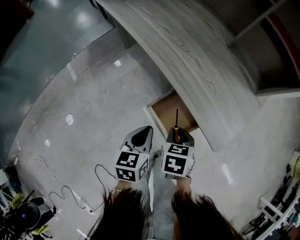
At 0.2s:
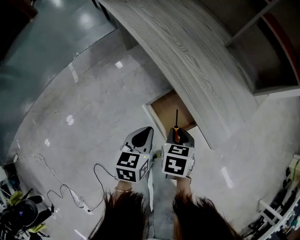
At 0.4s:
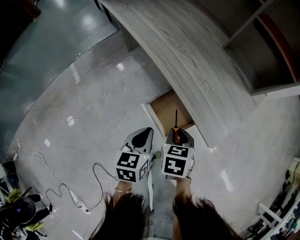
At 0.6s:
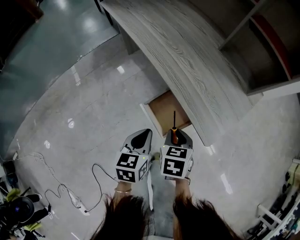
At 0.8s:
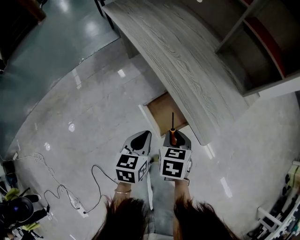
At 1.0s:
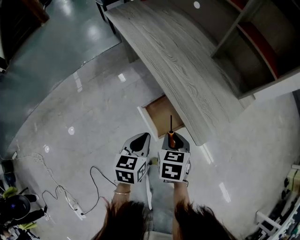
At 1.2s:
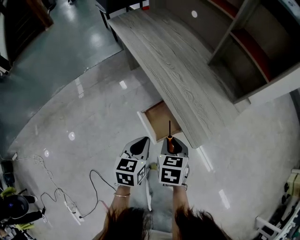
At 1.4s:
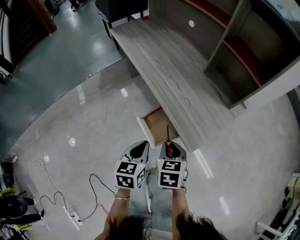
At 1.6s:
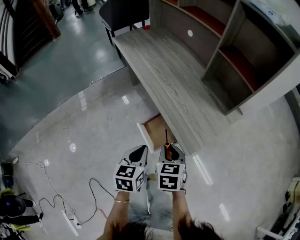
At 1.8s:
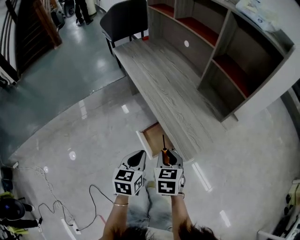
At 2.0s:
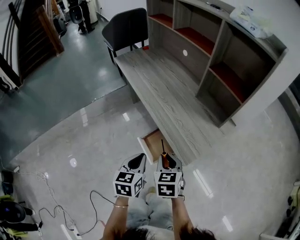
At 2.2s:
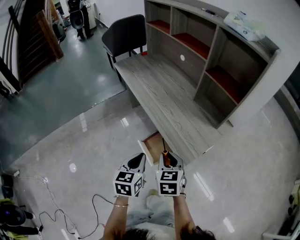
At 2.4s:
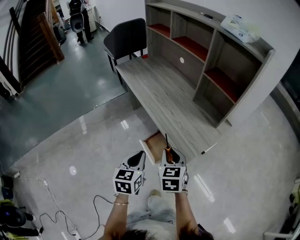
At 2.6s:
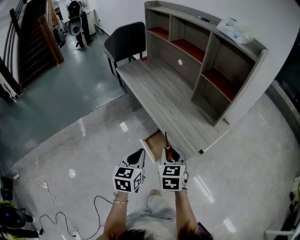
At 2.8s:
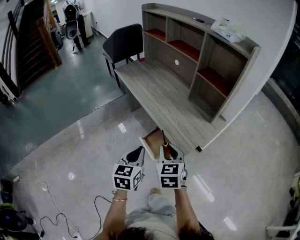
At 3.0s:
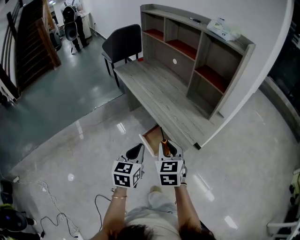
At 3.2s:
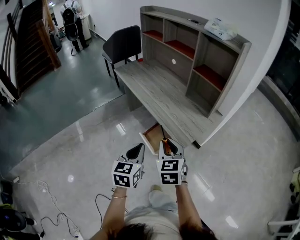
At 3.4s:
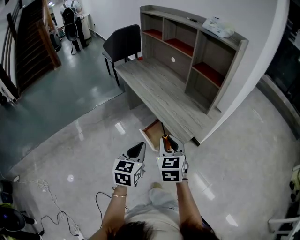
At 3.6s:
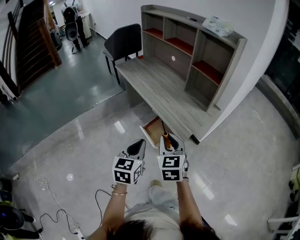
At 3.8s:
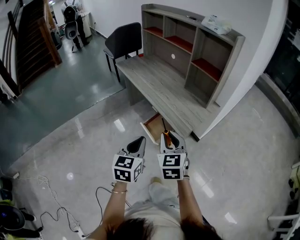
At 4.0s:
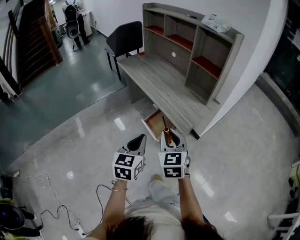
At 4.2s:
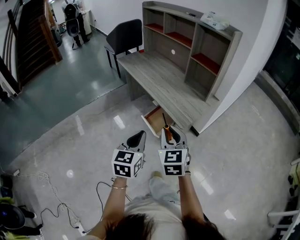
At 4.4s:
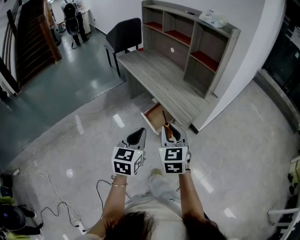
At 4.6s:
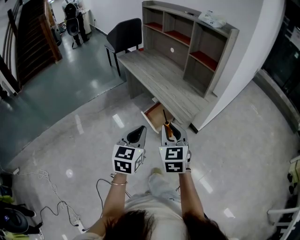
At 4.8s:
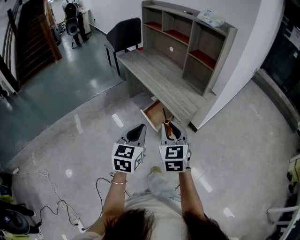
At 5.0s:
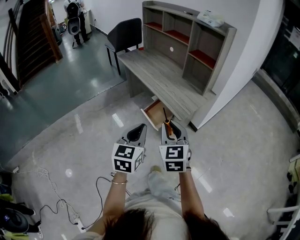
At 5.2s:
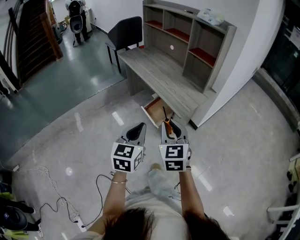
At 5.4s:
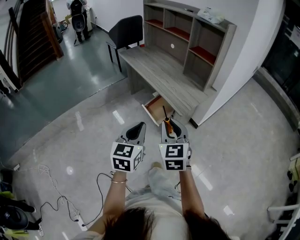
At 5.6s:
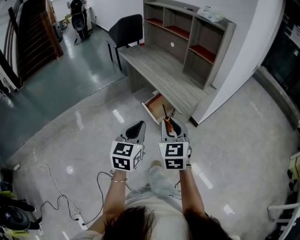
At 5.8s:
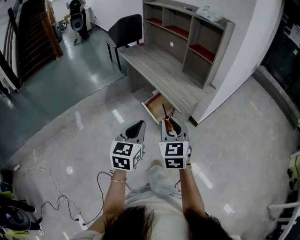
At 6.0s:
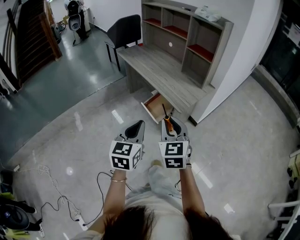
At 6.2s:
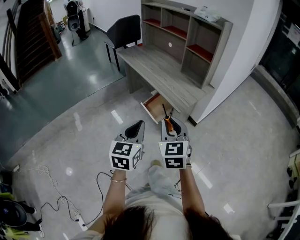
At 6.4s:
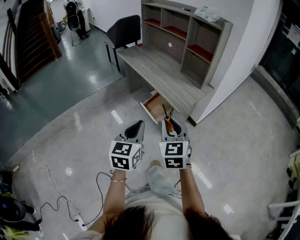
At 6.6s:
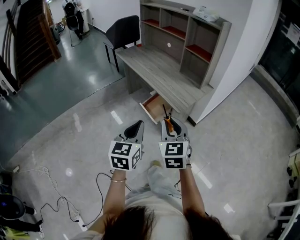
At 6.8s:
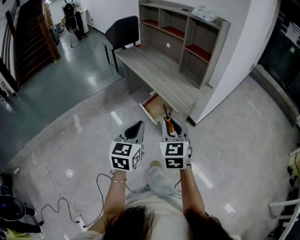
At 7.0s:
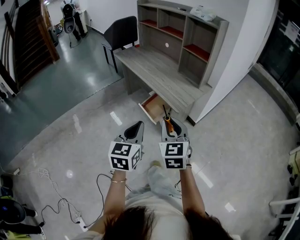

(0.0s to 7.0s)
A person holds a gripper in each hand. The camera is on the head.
0.0s - 1.4s: The left gripper travels upward, to the right and backward by roughly 10 cm, while the right gripper heads upward, covering about 10 cm.
1.4s - 2.8s: The grippers both shift upward by roughly 15 cm. The right gripper changes its angle by roughly 20 degrees.
2.8s - 4.2s: Both grippers travel together backward and upward, some 15 cm.
4.2s - 5.6s: The two grippers go roughly 10 cm backward.
5.6s - 7.0s: There are only small adjustments of the grippers.

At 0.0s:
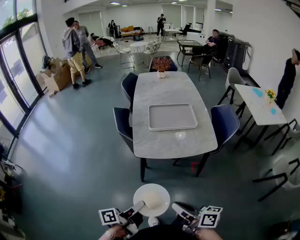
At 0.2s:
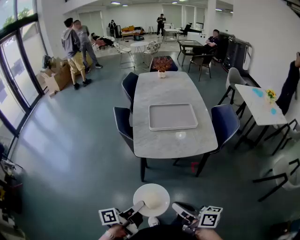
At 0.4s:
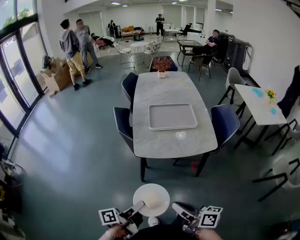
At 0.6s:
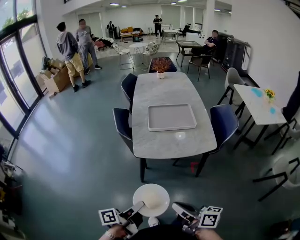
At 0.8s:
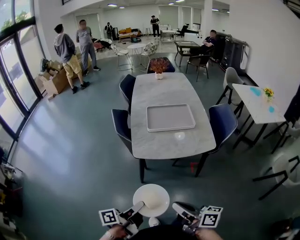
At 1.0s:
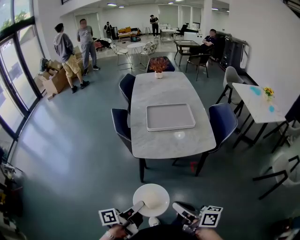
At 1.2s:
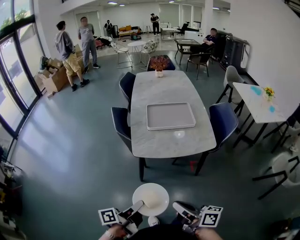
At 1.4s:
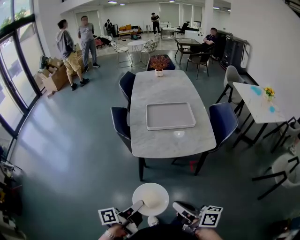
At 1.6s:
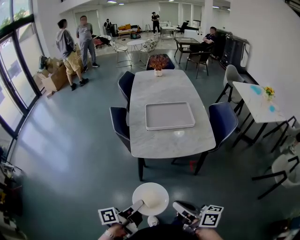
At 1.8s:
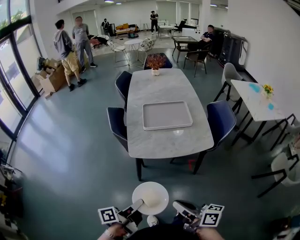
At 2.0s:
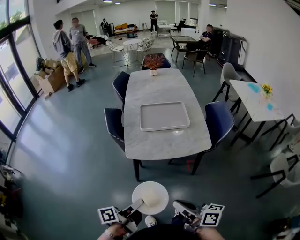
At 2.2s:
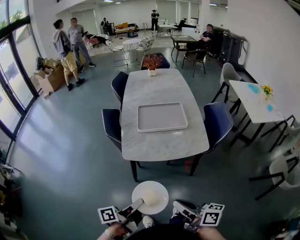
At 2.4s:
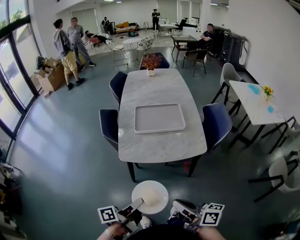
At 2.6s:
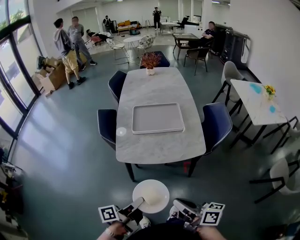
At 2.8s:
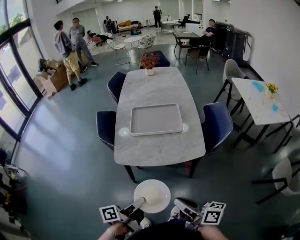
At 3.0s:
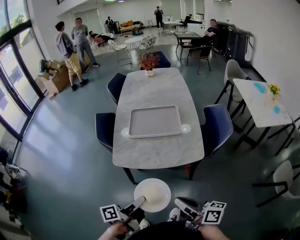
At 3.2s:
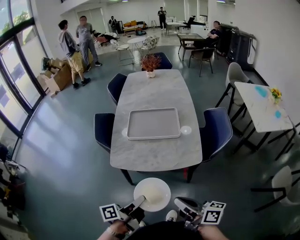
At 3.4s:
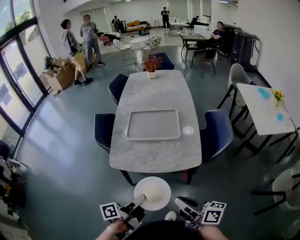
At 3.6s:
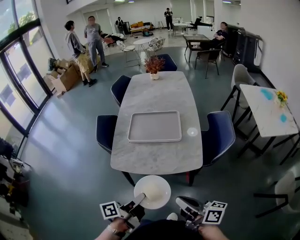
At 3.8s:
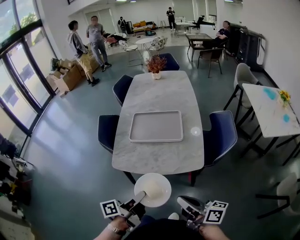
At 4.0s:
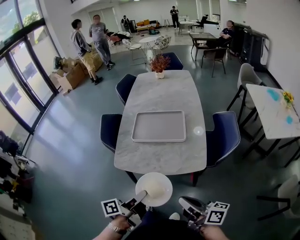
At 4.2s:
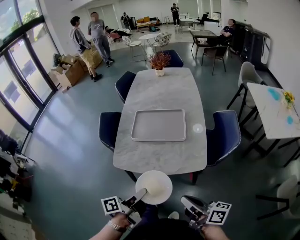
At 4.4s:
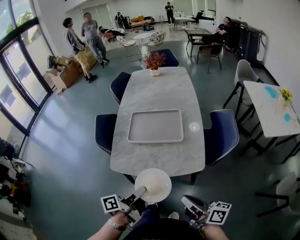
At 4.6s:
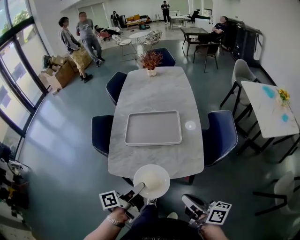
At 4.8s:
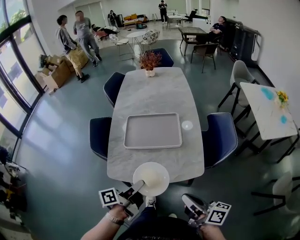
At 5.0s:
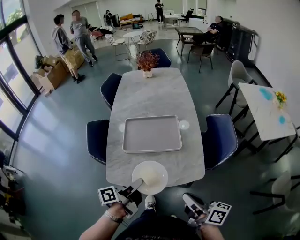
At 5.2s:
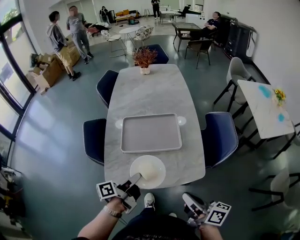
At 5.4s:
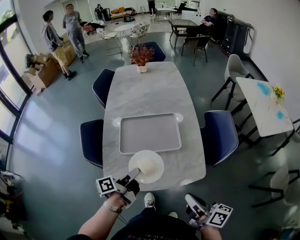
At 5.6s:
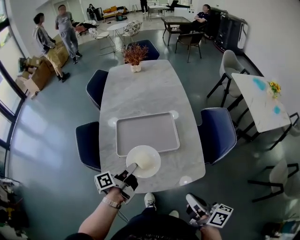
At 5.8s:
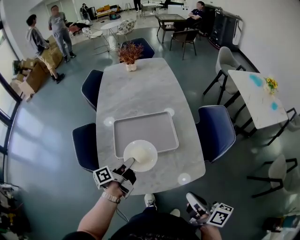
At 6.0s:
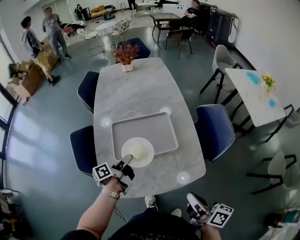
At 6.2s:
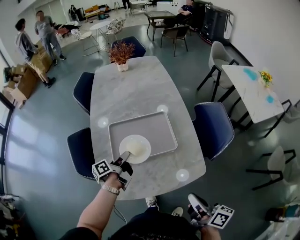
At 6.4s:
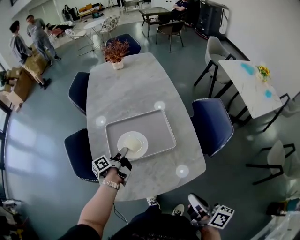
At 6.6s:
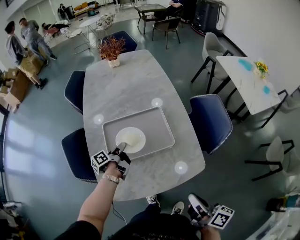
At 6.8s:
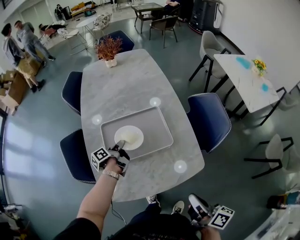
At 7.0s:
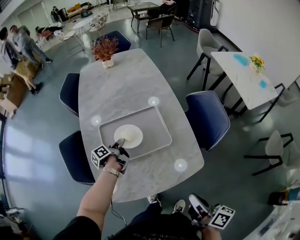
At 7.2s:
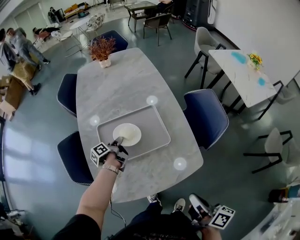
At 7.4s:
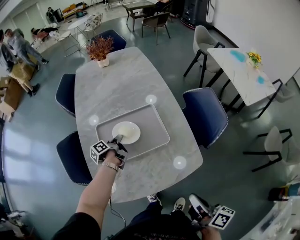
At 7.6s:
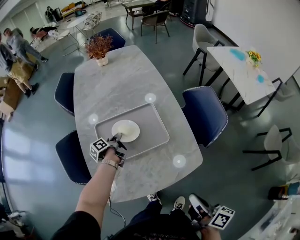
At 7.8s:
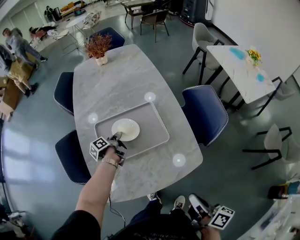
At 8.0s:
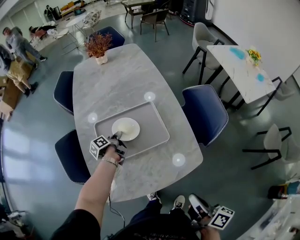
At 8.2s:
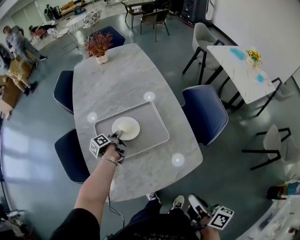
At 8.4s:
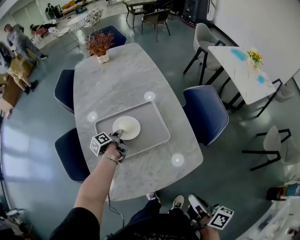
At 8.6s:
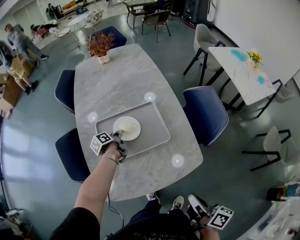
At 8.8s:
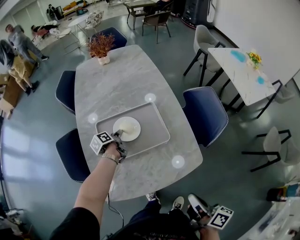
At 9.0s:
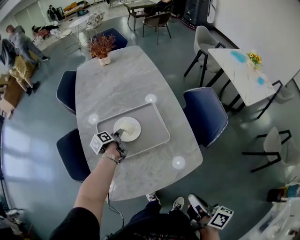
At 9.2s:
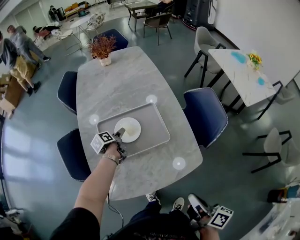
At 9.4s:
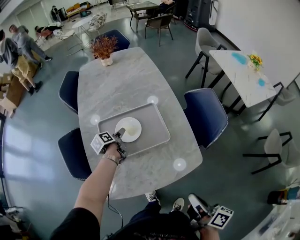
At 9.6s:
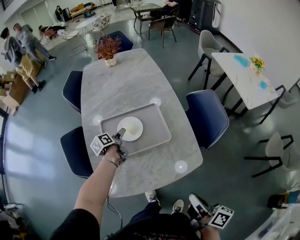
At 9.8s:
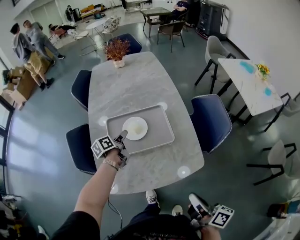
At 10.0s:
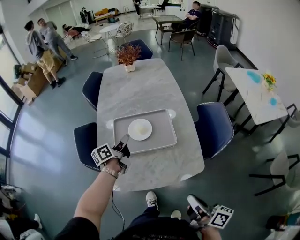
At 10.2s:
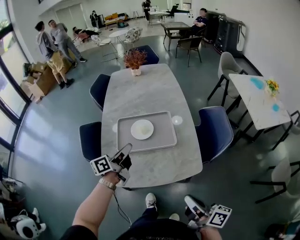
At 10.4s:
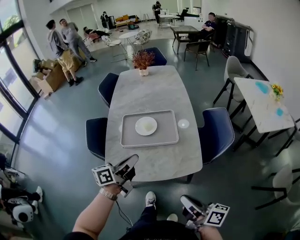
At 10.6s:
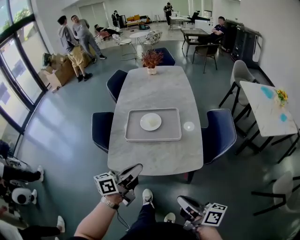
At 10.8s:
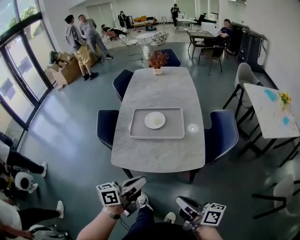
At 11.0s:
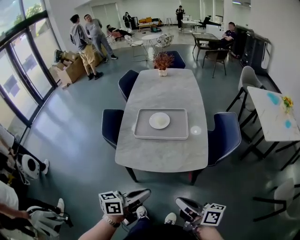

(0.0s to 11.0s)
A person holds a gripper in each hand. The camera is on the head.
1.6s - 3.2s: The right gripper changes place by roughly 20 cm.
3.2s - 4.8s: The right gripper moves about 10 cm.
4.8s - 6.2s: The right gripper ends up about 10 cm from where it was, and rotates roughly 20 degrees.
9.4s - 11.0s: The right gripper changes place by about 15 cm, and swivels roughly 40 degrees.

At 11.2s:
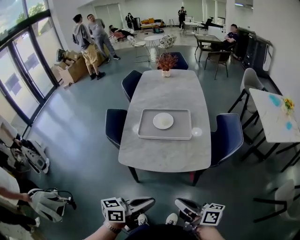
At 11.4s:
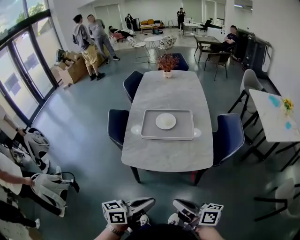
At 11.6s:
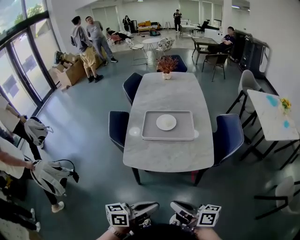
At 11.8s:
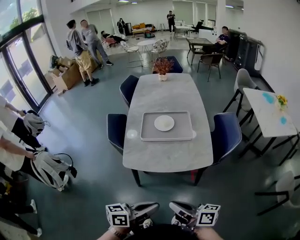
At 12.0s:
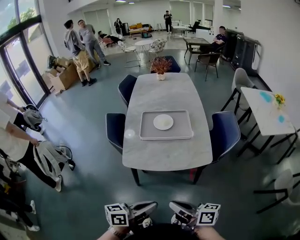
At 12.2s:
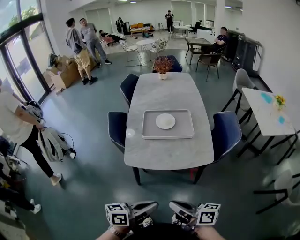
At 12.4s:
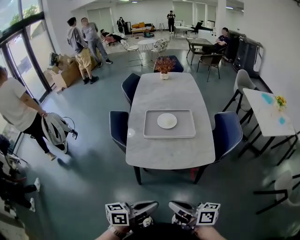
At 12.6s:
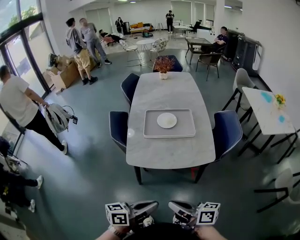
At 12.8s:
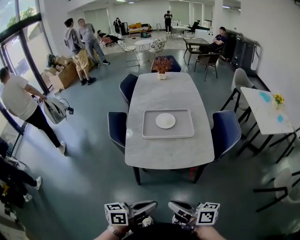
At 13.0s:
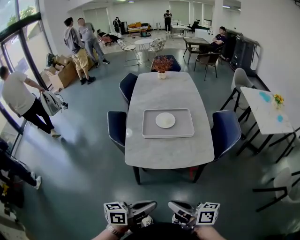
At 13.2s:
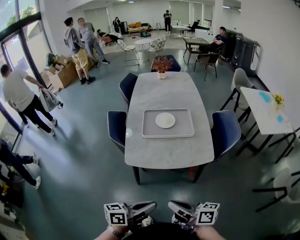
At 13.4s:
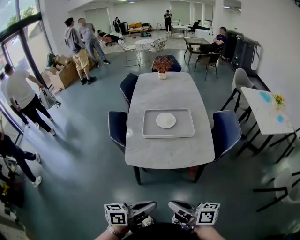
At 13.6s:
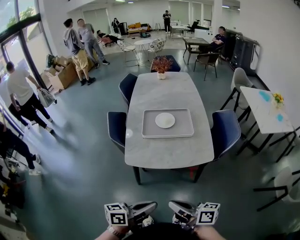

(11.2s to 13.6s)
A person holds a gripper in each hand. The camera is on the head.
11.2s - 12.4s: The right gripper shifts by some 10 cm.

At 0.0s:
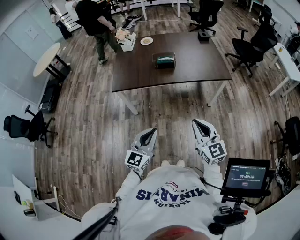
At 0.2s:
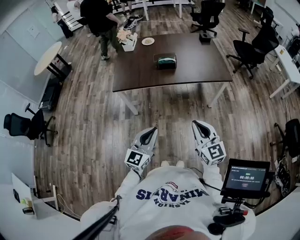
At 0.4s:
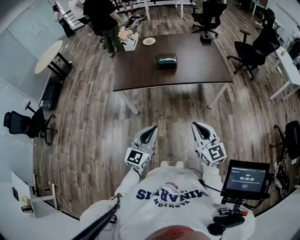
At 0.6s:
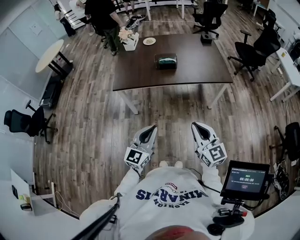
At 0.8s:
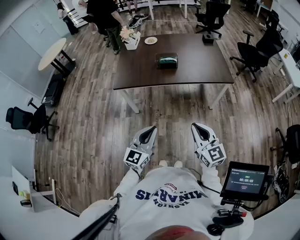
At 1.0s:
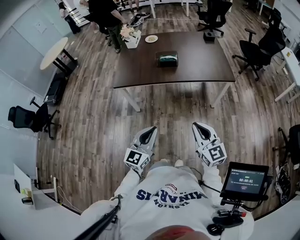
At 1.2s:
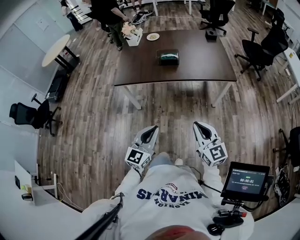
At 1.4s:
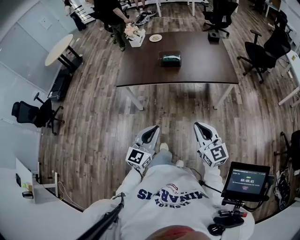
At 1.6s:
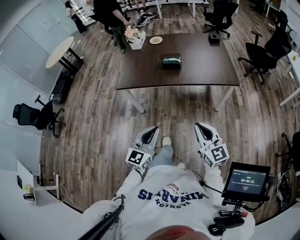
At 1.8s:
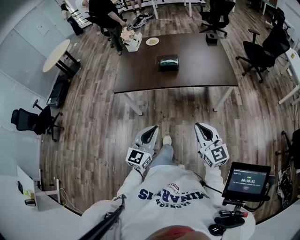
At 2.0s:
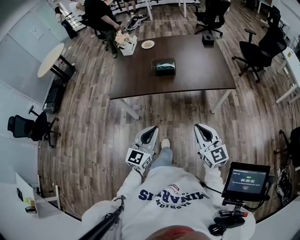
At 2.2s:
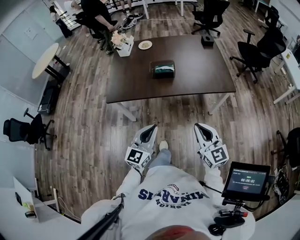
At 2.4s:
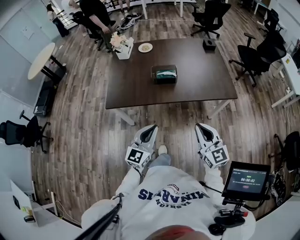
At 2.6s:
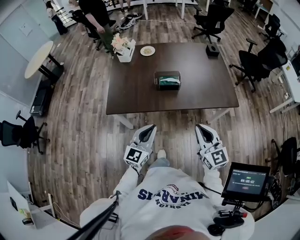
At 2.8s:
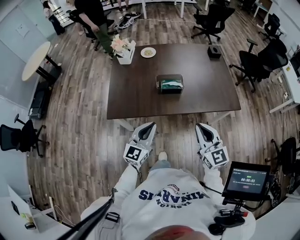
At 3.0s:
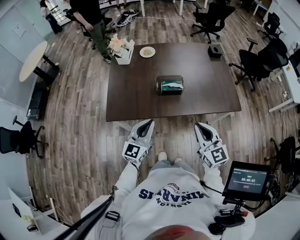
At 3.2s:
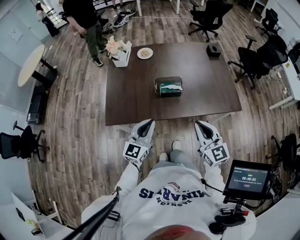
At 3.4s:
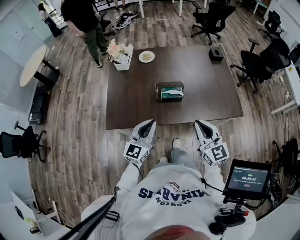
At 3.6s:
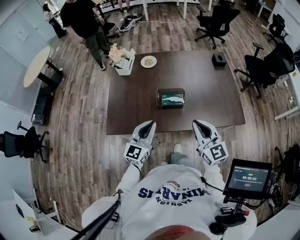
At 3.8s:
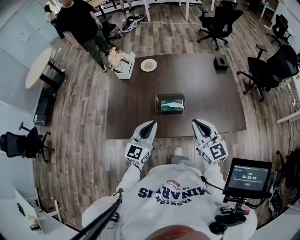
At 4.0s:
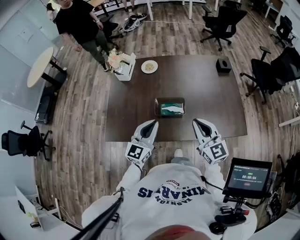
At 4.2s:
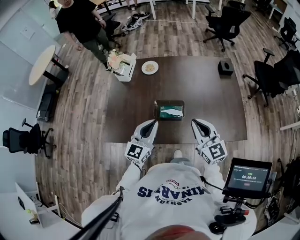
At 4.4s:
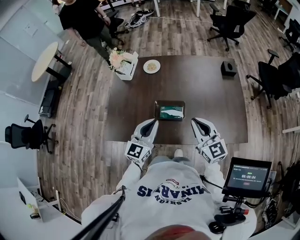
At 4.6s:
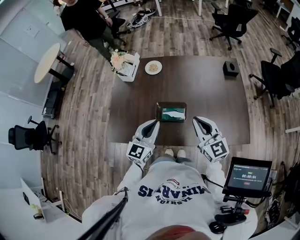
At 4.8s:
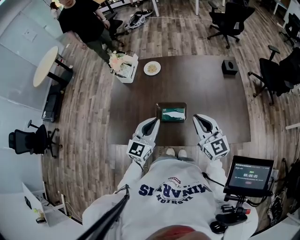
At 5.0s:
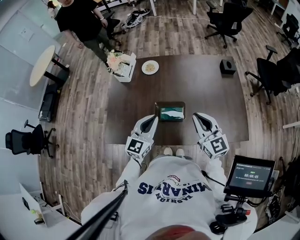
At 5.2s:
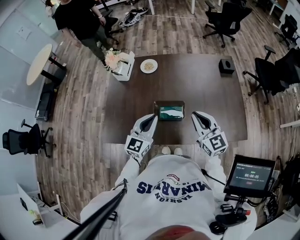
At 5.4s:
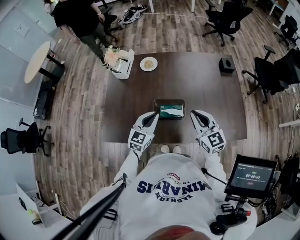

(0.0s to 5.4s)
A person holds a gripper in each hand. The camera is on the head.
0.0s - 1.4s: The grippers stay close to where they were, moving slightly.
1.4s - 2.8s: Both grippers travel together forward, some 35 cm.
2.8s - 4.0s: The grippers both shift forward by some 20 cm.
4.0s - 5.4s: The left gripper shifts some 10 cm forward and downward, while the right gripper heads forward, covering some 10 cm.
